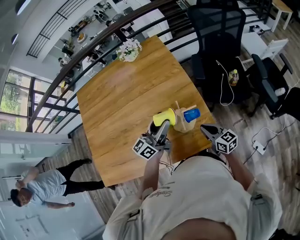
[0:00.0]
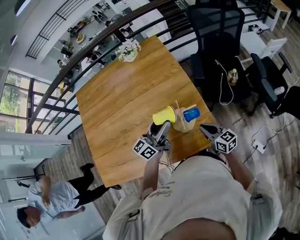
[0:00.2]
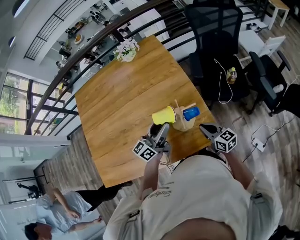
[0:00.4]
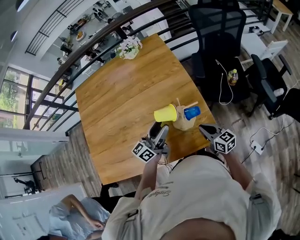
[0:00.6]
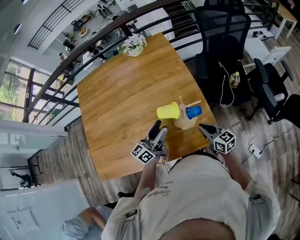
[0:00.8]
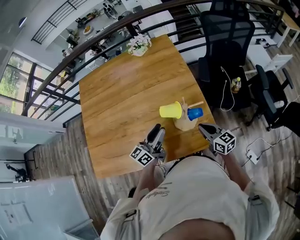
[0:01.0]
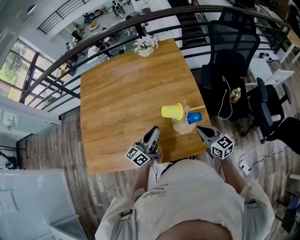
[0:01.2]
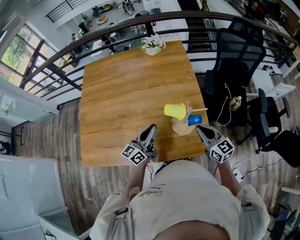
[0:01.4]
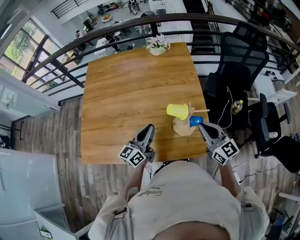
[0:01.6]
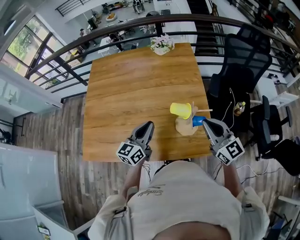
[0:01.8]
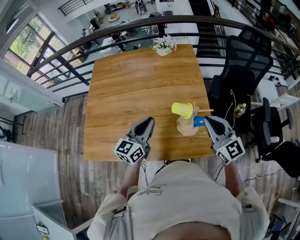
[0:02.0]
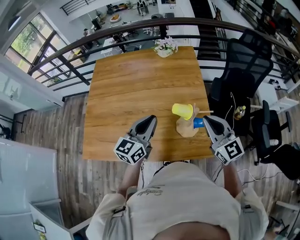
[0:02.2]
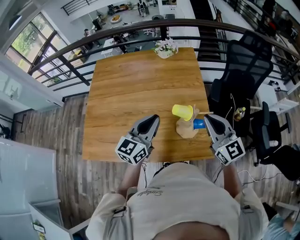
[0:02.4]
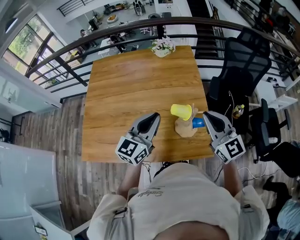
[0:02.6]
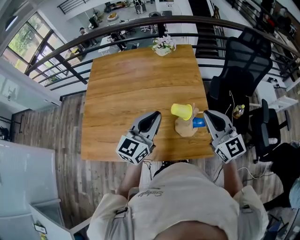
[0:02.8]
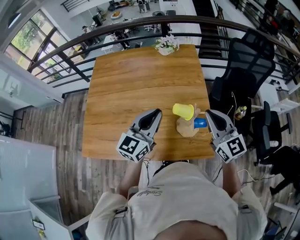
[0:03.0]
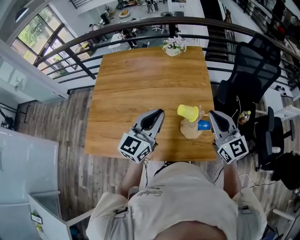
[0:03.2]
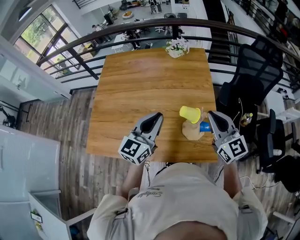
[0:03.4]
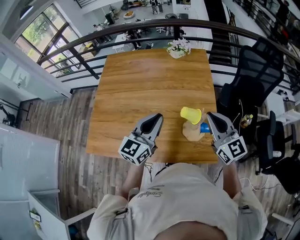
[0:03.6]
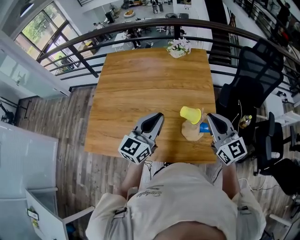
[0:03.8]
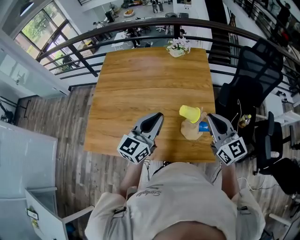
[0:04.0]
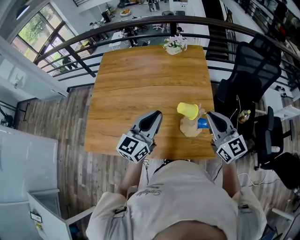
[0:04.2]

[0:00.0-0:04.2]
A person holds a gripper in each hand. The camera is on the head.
0.0 to 1.4 s: The right gripper heads upward, covering some 10 cm; the left gripper travels to the left and backward by about 10 cm, and closes its fingers.
1.4 to 2.8 s: Both grippers travel together upward, some 15 cm. The left gripper swivels some 30 degrees. Meanwhile the right gripper rotates approximately 20 degrees.
2.8 to 4.2 s: The grippers move only a little.

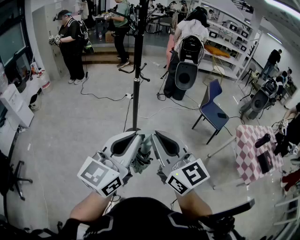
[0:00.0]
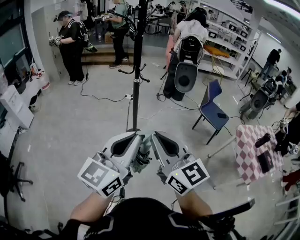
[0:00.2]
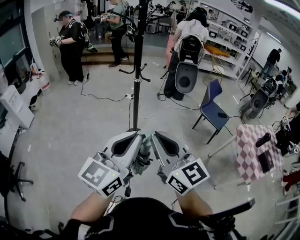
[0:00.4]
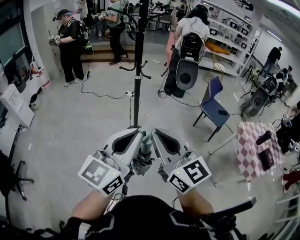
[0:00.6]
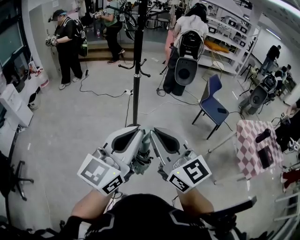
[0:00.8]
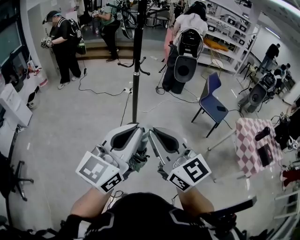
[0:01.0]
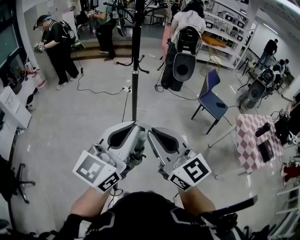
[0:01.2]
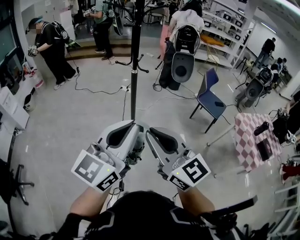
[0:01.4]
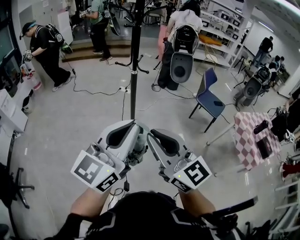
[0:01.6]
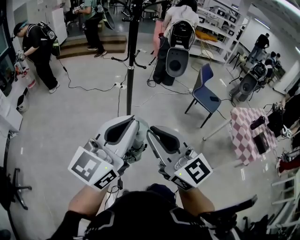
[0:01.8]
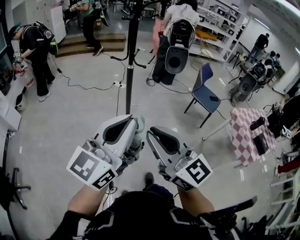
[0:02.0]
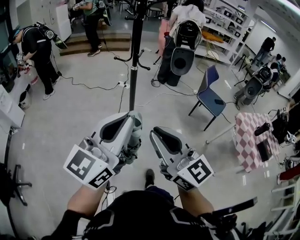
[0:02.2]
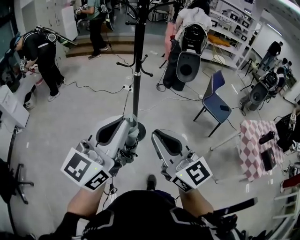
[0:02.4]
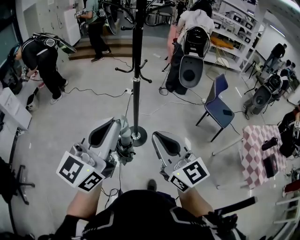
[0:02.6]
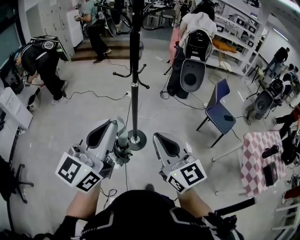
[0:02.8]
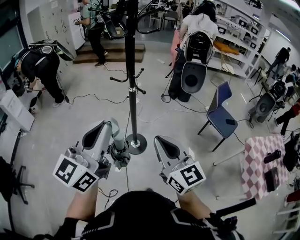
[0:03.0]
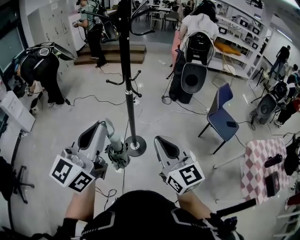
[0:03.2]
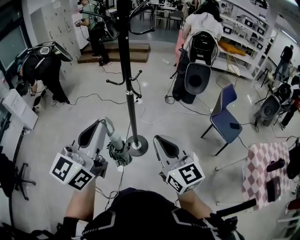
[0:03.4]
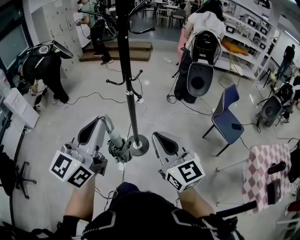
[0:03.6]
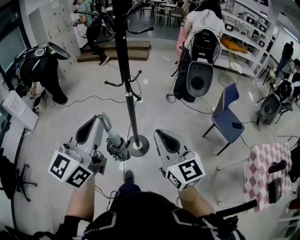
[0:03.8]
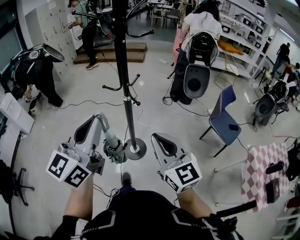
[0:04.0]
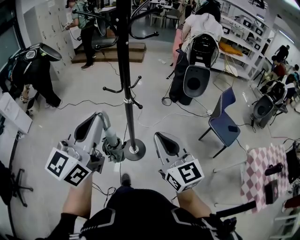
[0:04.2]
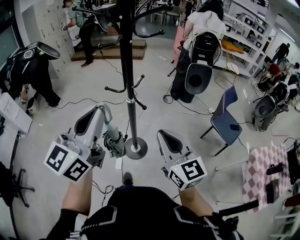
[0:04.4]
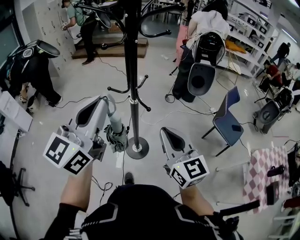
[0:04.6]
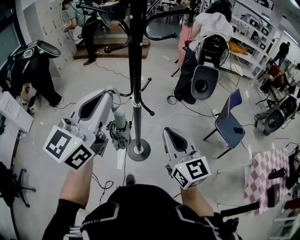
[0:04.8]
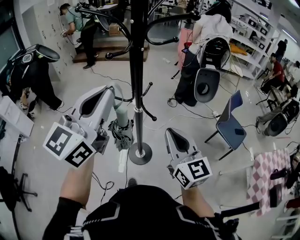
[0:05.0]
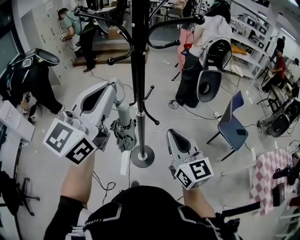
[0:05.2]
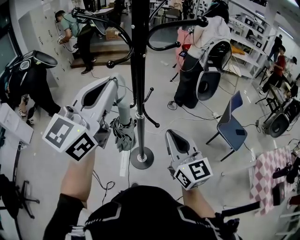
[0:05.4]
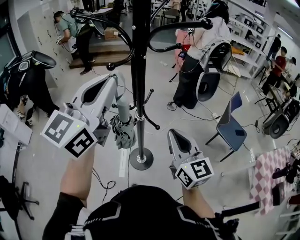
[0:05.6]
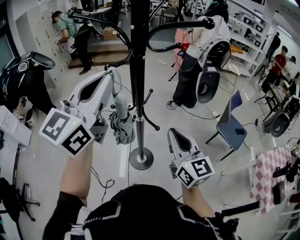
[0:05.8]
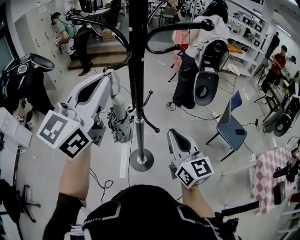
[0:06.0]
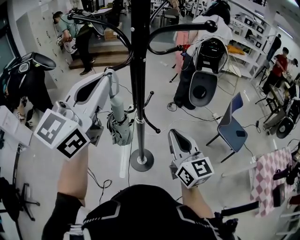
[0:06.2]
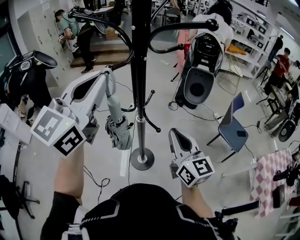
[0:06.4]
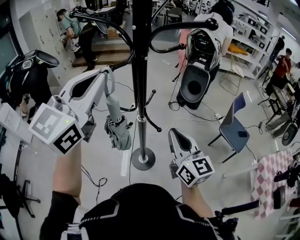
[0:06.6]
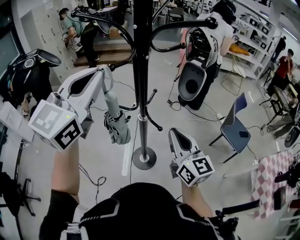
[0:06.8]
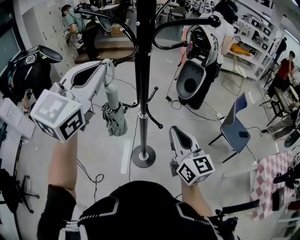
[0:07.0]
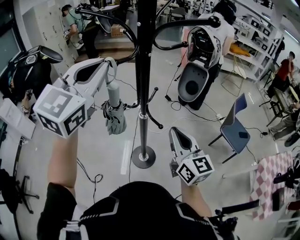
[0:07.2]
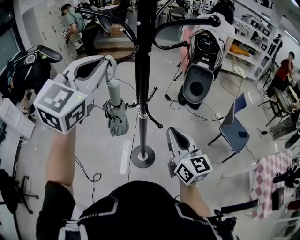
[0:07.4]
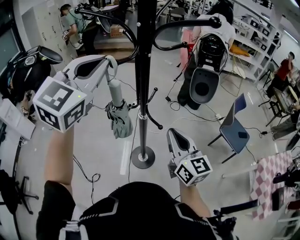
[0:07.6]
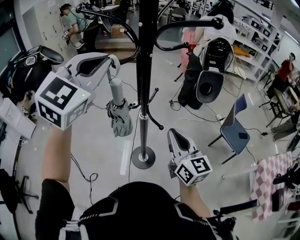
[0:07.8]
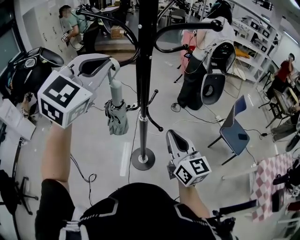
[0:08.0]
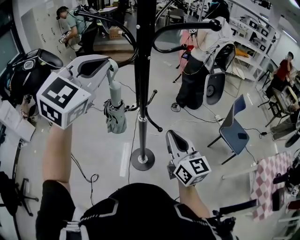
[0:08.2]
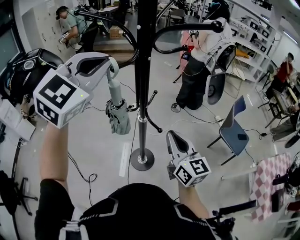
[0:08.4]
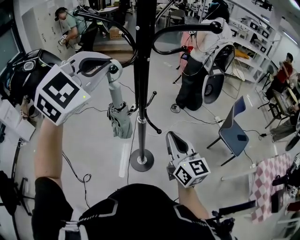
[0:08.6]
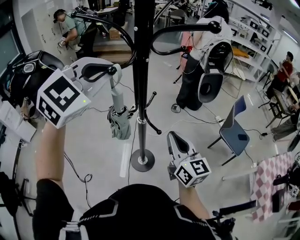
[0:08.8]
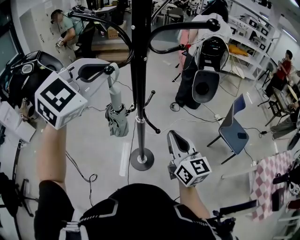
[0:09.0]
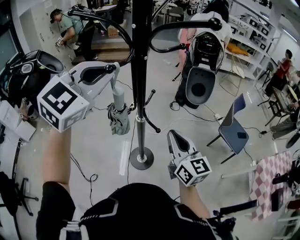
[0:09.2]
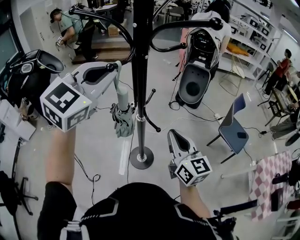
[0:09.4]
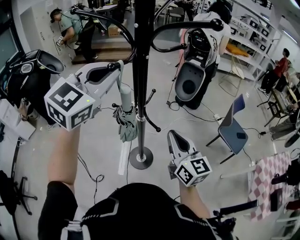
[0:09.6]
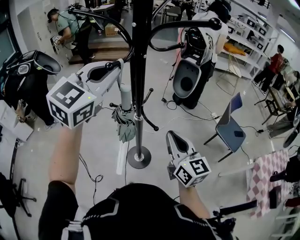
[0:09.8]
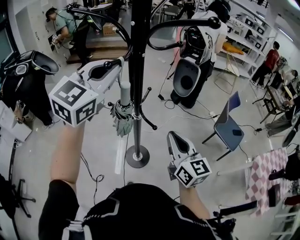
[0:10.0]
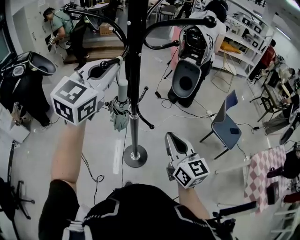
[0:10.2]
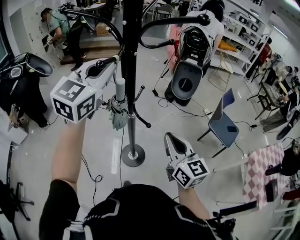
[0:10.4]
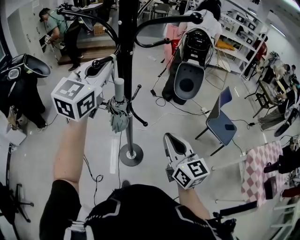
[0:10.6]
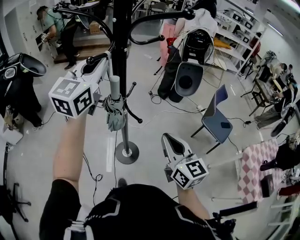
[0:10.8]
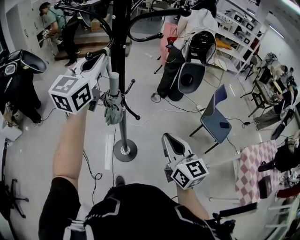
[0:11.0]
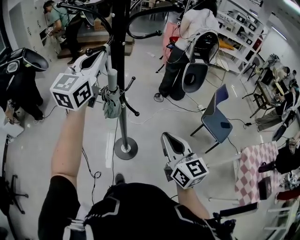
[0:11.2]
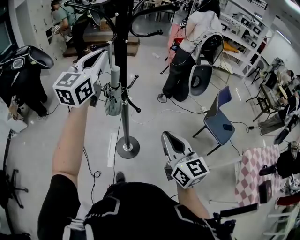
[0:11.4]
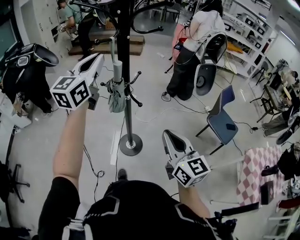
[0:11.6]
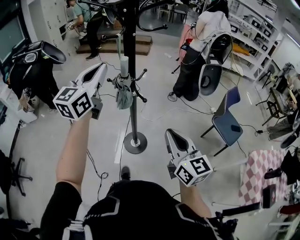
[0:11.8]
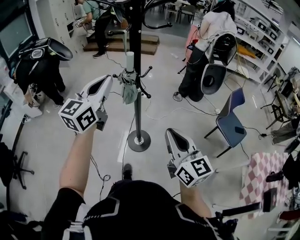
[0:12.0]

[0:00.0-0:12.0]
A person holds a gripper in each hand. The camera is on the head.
0.0 to 1.6 s: The grippers both shift to the left by about 5 cm.
1.6 to 3.0 s: The left gripper heads forward, covering some 20 cm. The right gripper moves forward and to the right, about 25 cm.
3.0 to 4.4 s: The two grippers go about 15 cm forward.
4.4 to 6.0 s: The left gripper shifts about 15 cm forward and upward. Meanwhile the right gripper is displaced forward by some 10 cm.
6.0 to 7.6 s: The left gripper swivels roughly 30 degrees.
9.0 to 10.4 s: The left gripper rotates some 20 degrees.
10.4 to 12.0 s: The left gripper heads backward and downward, covering roughly 20 cm, and changes its angle by roughly 20 degrees; the right gripper goes some 15 cm backward.

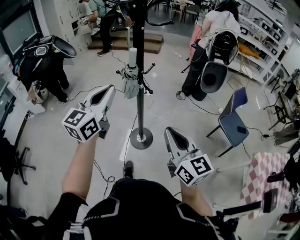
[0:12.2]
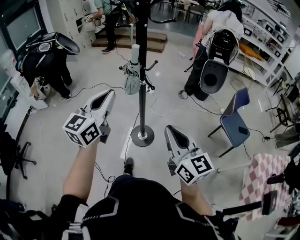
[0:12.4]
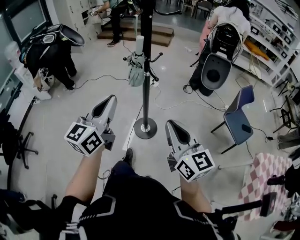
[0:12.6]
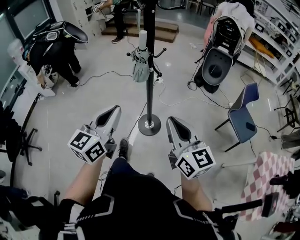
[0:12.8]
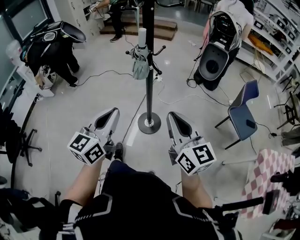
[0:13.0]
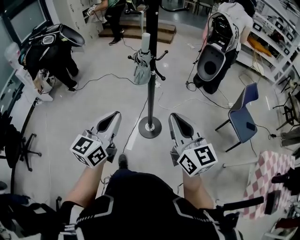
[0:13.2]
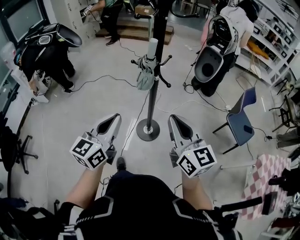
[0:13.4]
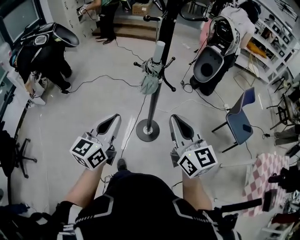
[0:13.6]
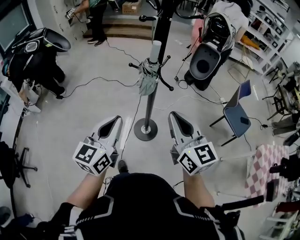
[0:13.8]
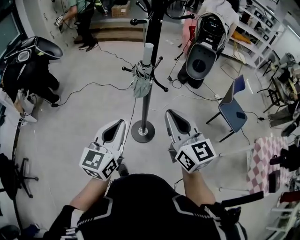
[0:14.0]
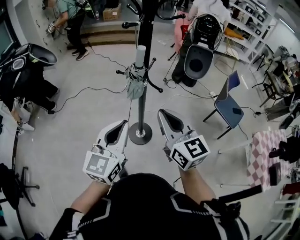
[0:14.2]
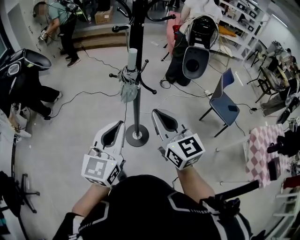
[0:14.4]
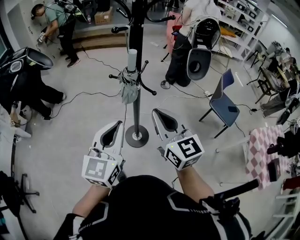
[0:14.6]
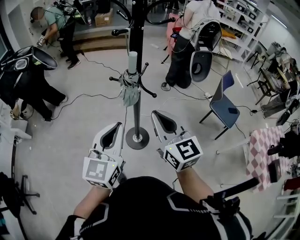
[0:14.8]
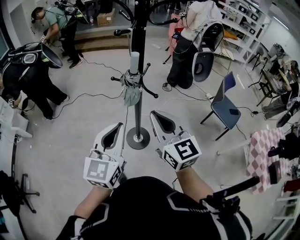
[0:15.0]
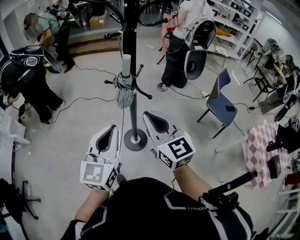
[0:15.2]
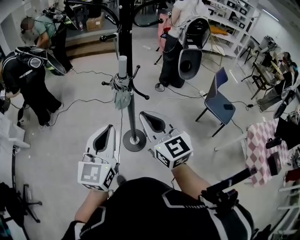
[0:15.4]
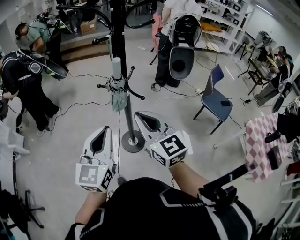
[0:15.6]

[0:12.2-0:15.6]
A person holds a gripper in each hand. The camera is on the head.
12.2 to 13.8 s: The right gripper moves to the left and forward, about 15 cm; the left gripper shifts roughly 10 cm downward and to the left, and goes backward and returns, about 10 cm each way.
13.8 to 15.6 s: The left gripper shifts by about 5 cm.

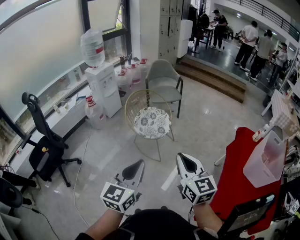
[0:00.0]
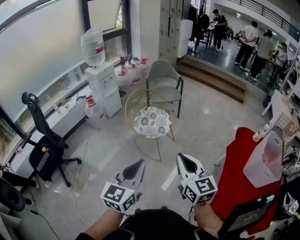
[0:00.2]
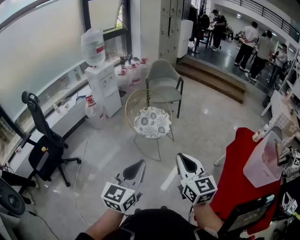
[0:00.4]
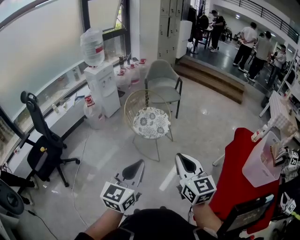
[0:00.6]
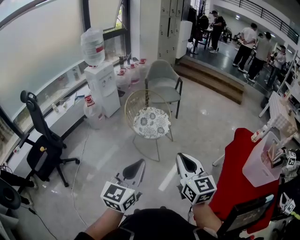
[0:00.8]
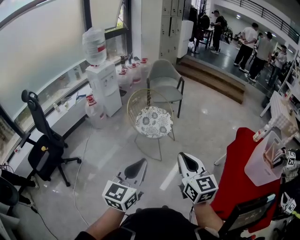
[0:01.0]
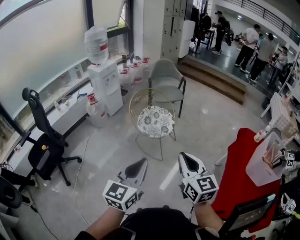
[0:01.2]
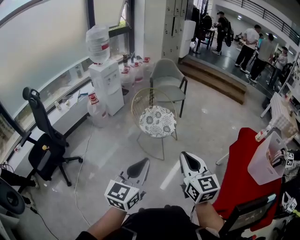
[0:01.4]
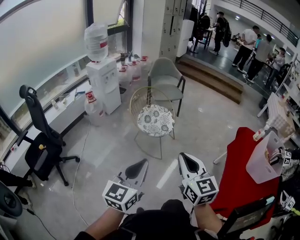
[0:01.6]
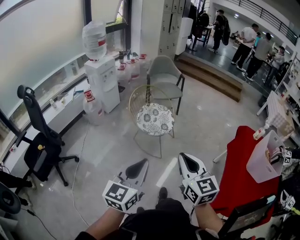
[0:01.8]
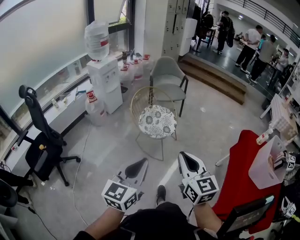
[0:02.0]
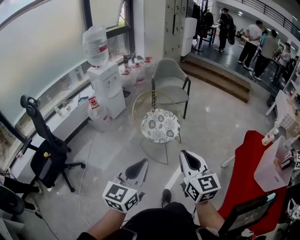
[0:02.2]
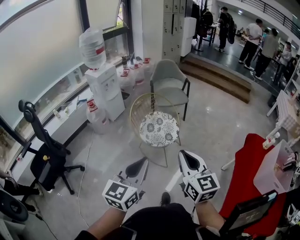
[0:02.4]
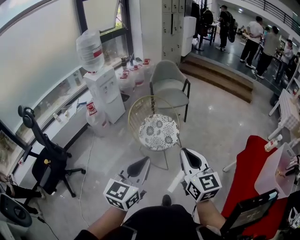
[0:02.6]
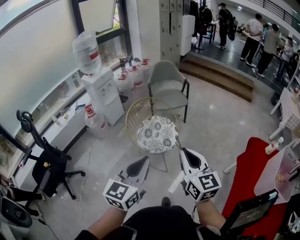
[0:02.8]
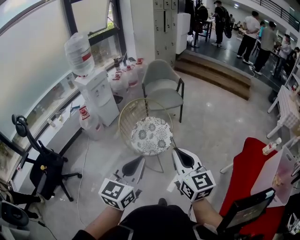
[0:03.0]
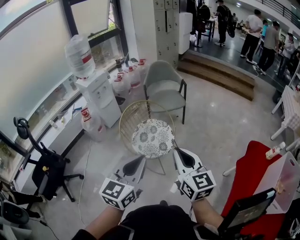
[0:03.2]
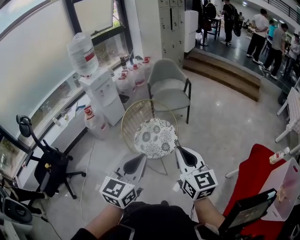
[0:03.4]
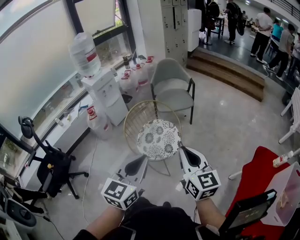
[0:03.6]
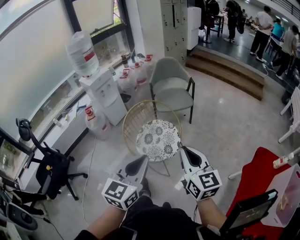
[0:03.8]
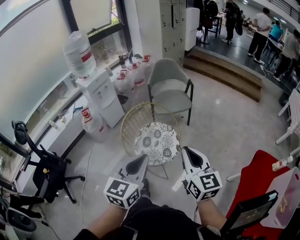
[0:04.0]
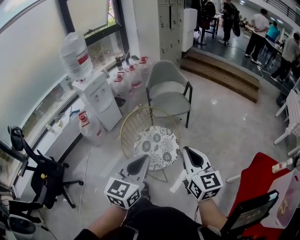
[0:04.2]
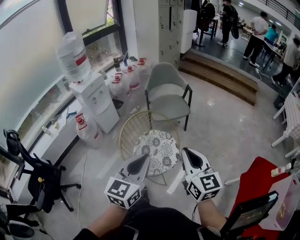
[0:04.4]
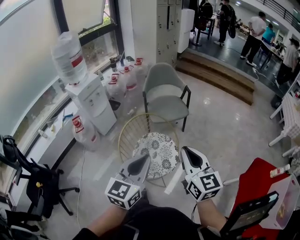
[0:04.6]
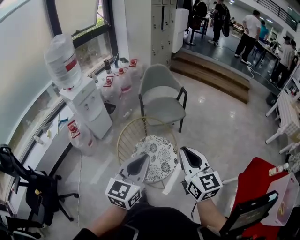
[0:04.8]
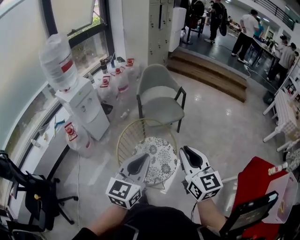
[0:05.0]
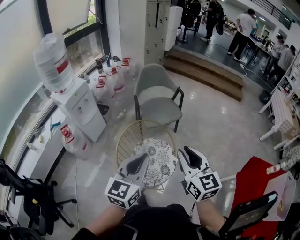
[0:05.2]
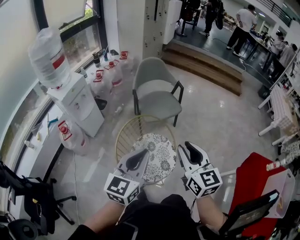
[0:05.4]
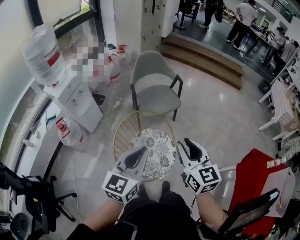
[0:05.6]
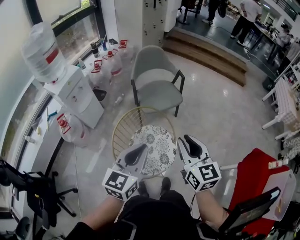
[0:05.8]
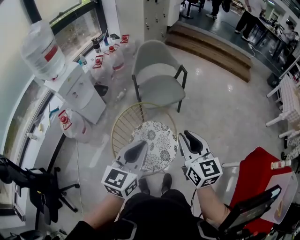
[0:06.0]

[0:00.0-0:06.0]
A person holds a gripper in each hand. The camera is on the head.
0.0 to 1.6 s: The grippers both shift to the left by roughly 5 cm.
1.6 to 3.0 s: The two grippers go some 25 cm forward.
3.0 to 4.4 s: The two grippers go about 20 cm forward.
4.4 to 6.0 s: Both grippers move forward, some 15 cm.
